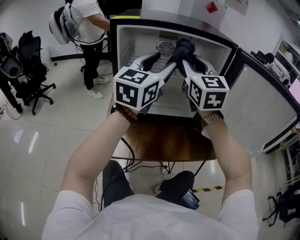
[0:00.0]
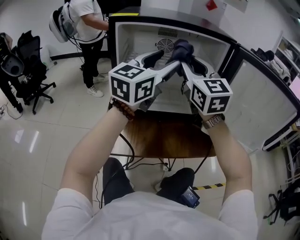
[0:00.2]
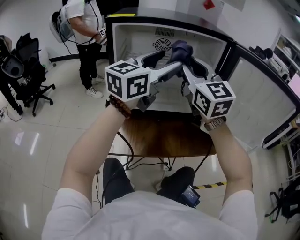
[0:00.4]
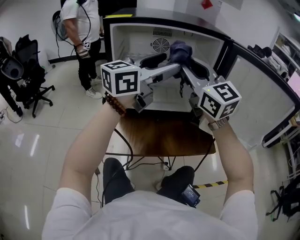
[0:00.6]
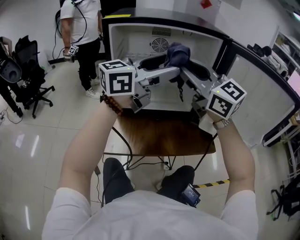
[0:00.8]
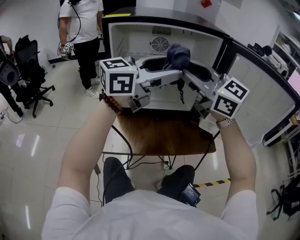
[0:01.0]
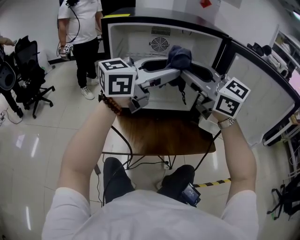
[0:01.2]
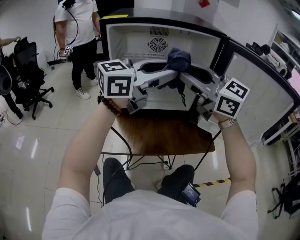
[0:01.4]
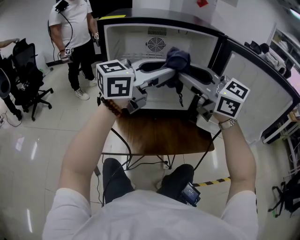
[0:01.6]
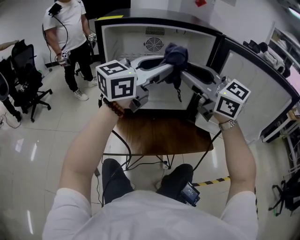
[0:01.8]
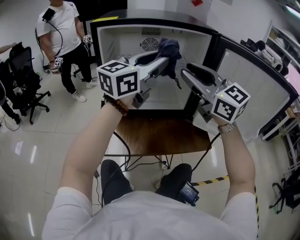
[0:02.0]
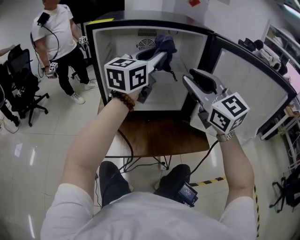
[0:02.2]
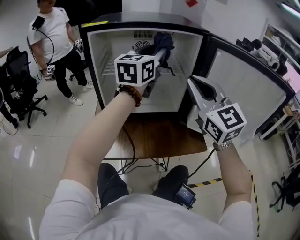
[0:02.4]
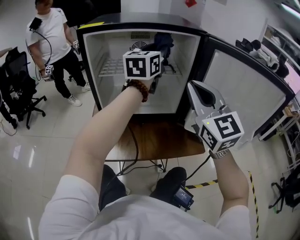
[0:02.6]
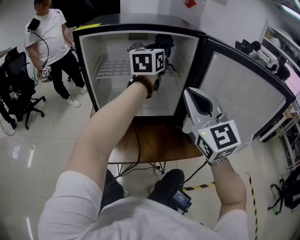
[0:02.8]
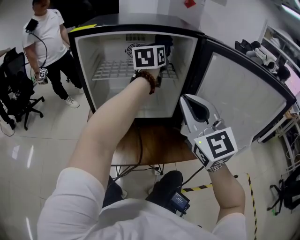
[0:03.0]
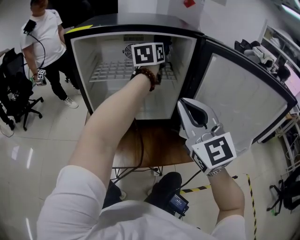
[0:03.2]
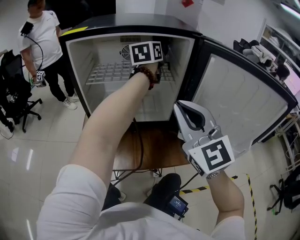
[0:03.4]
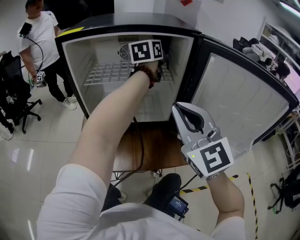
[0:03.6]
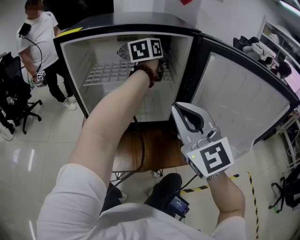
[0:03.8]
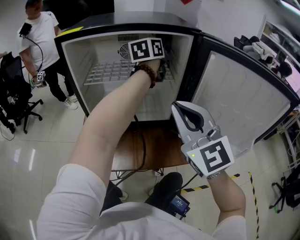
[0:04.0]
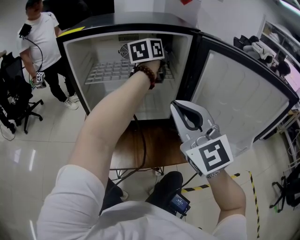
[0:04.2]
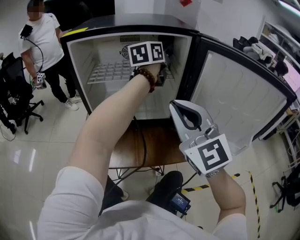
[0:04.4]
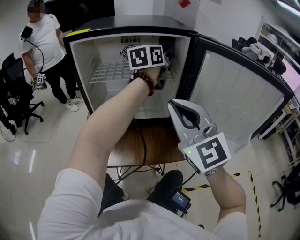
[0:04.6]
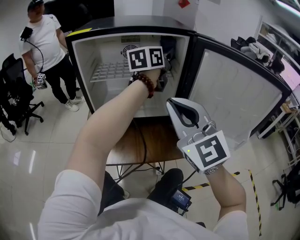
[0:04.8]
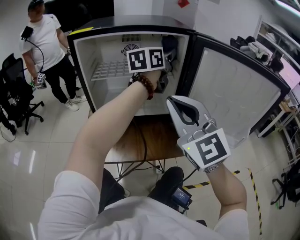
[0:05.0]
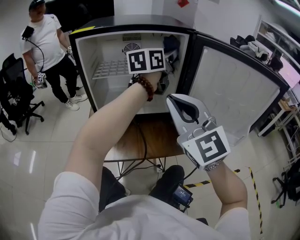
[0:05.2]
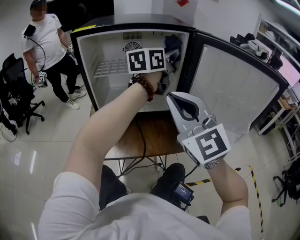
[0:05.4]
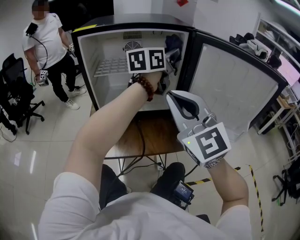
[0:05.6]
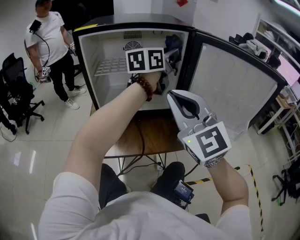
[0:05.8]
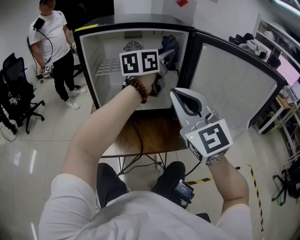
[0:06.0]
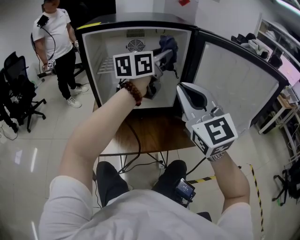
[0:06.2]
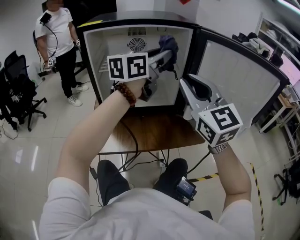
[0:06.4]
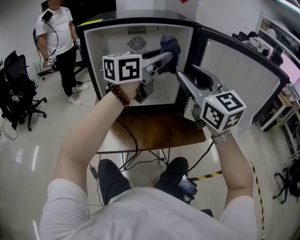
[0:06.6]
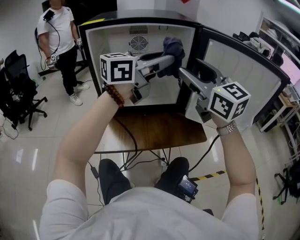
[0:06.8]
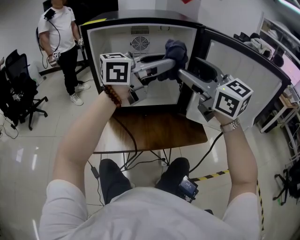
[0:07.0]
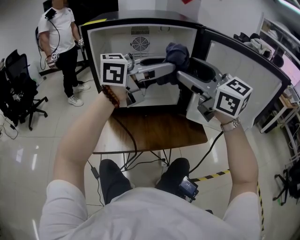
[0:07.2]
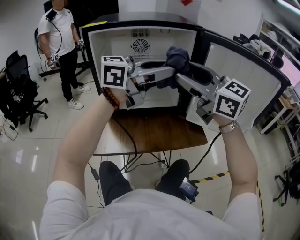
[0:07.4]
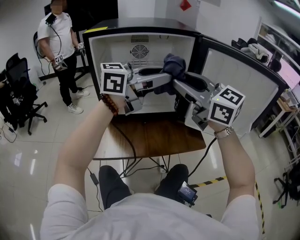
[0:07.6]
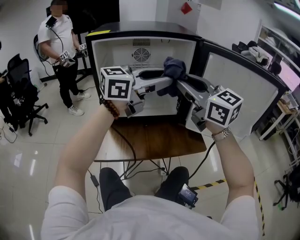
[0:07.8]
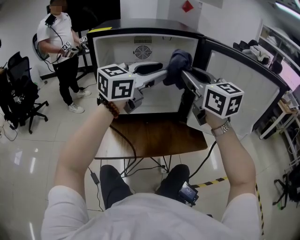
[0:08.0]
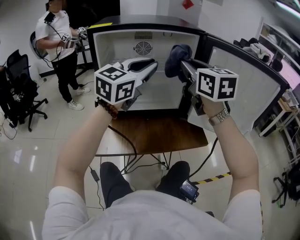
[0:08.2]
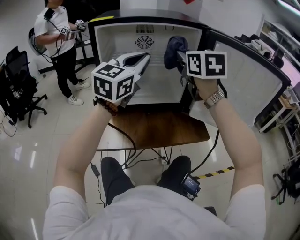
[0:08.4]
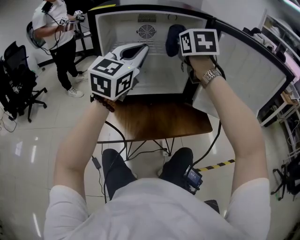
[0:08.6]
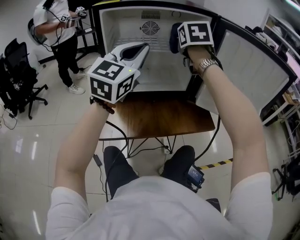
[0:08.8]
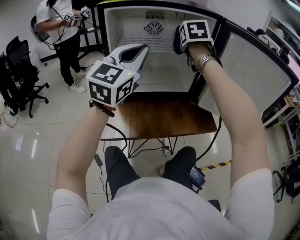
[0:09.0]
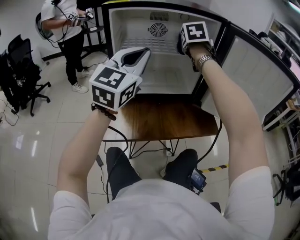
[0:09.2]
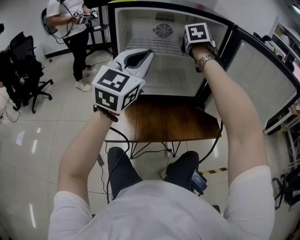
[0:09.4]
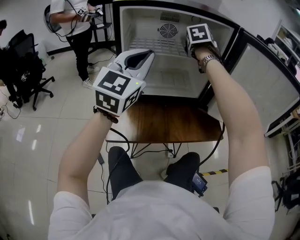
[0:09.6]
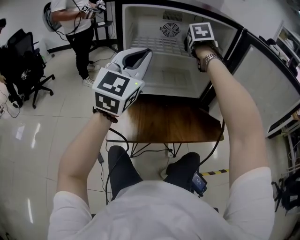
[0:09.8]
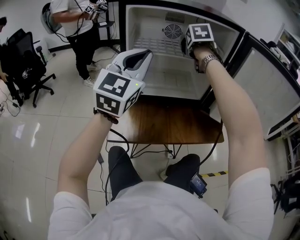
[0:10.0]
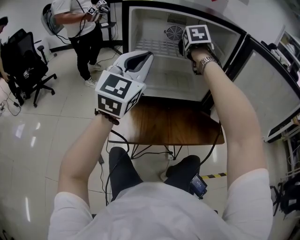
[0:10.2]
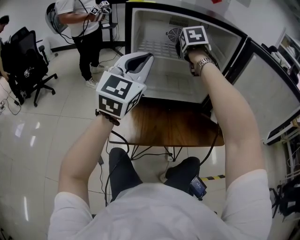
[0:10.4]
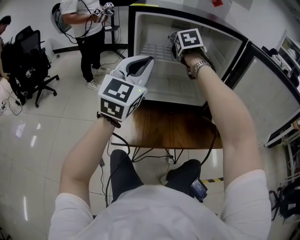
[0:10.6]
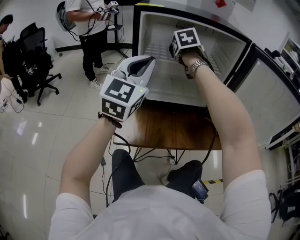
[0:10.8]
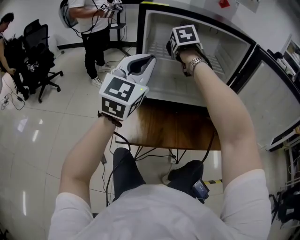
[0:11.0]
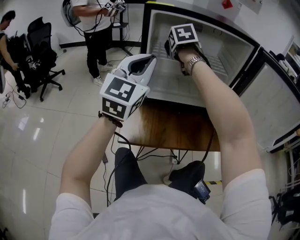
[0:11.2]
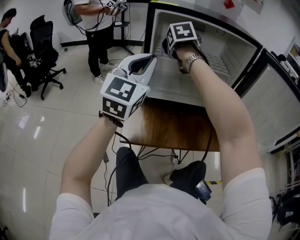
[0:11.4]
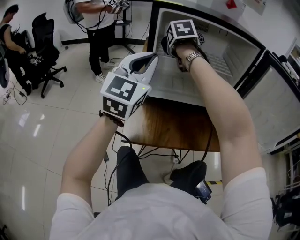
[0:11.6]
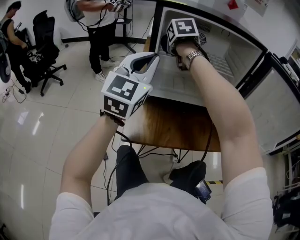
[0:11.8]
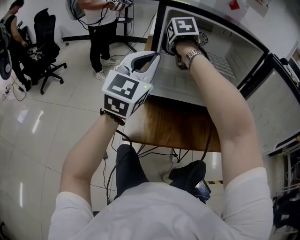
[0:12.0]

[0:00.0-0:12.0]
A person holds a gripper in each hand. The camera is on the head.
0:00.0 to 0:01.6: The left gripper changes place by about 10 cm, and swivels approximately 40 degrees, while the right gripper moves approximately 10 cm, and rotates about 40 degrees.
0:01.6 to 0:03.0: The left gripper goes some 20 cm forward, and changes its angle by some 40 degrees. The right gripper is displaced to the right by roughly 10 cm, rotates some 30 degrees, and closes.
0:04.4 to 0:06.0: The left gripper goes roughly 15 cm backward.
0:06.0 to 0:07.6: The right gripper ends up approximately 5 cm from where it was, turns by about 30 degrees, and opens up; the left gripper shifts by some 15 cm, and turns by roughly 40 degrees.
0:07.6 to 0:09.0: The right gripper changes place by some 20 cm, and rotates roughly 60 degrees. Meanwhile the left gripper shifts by roughly 15 cm, turns by approximately 60 degrees, and closes its fingers.
0:09.0 to 0:10.4: The right gripper travels to the left by roughly 10 cm. Meanwhile the left gripper heads to the left, covering roughly 5 cm.
0:10.4 to 0:12.0: The right gripper heads to the left, covering about 15 cm. The left gripper is displaced to the left by roughly 5 cm.

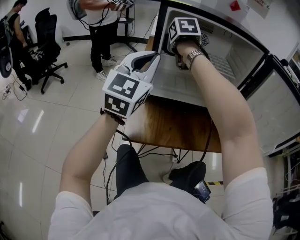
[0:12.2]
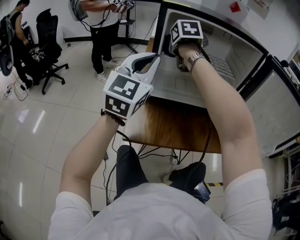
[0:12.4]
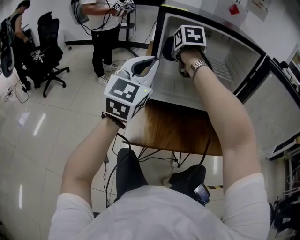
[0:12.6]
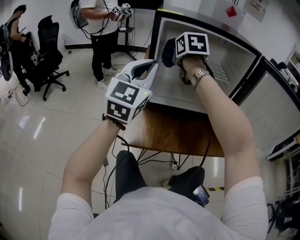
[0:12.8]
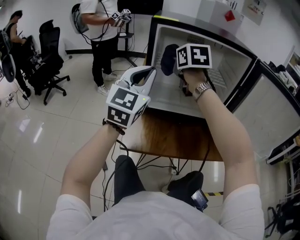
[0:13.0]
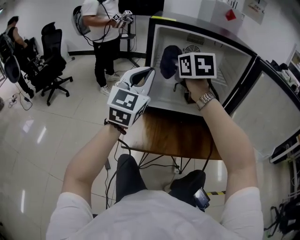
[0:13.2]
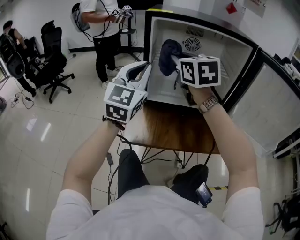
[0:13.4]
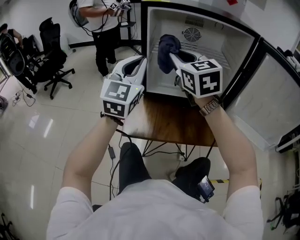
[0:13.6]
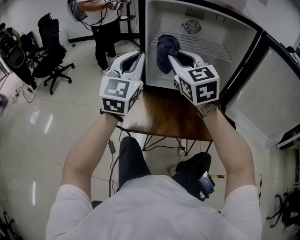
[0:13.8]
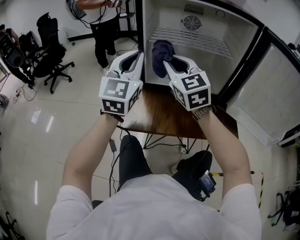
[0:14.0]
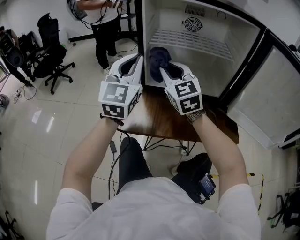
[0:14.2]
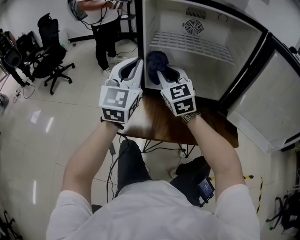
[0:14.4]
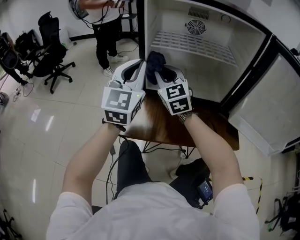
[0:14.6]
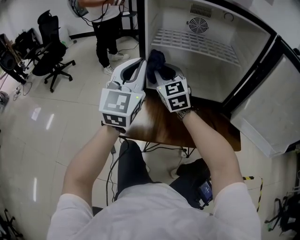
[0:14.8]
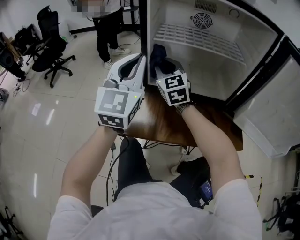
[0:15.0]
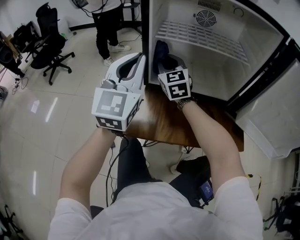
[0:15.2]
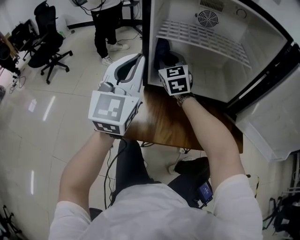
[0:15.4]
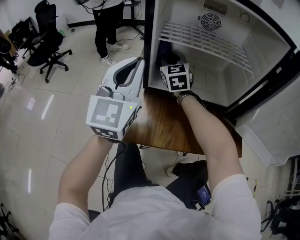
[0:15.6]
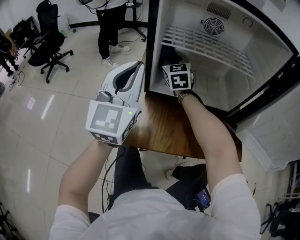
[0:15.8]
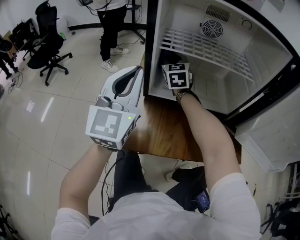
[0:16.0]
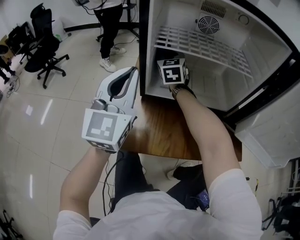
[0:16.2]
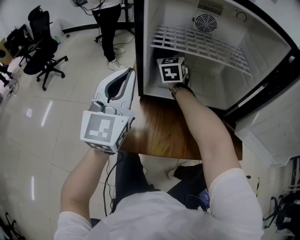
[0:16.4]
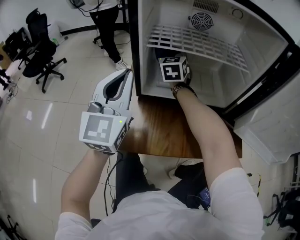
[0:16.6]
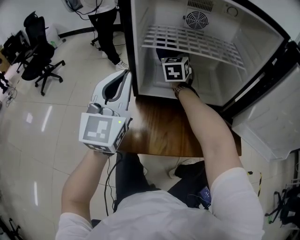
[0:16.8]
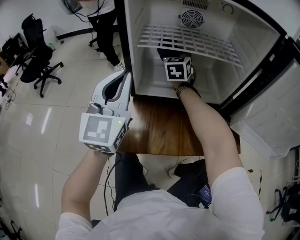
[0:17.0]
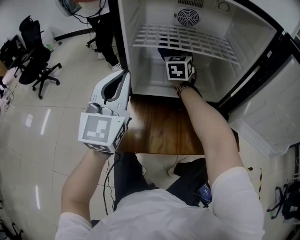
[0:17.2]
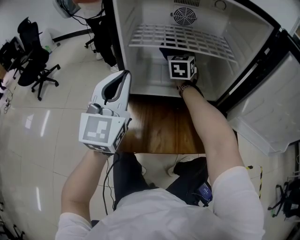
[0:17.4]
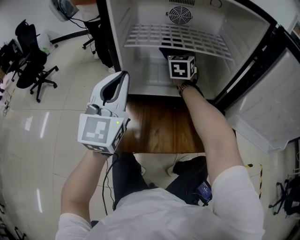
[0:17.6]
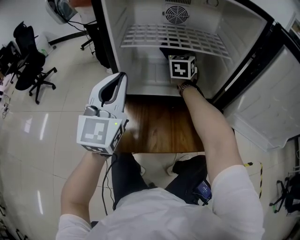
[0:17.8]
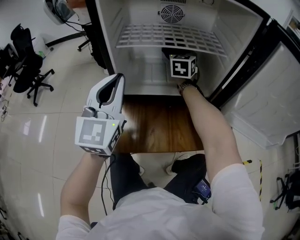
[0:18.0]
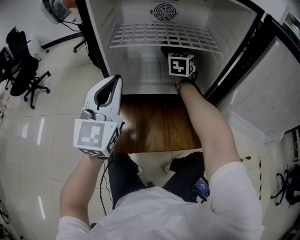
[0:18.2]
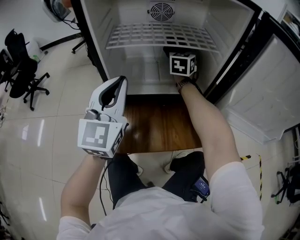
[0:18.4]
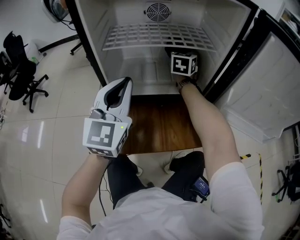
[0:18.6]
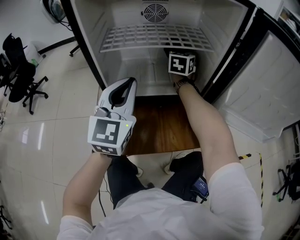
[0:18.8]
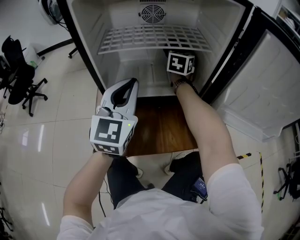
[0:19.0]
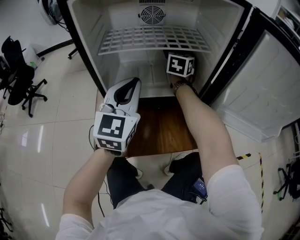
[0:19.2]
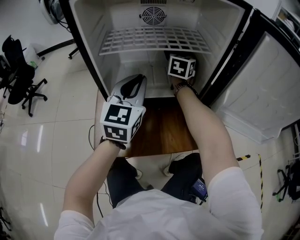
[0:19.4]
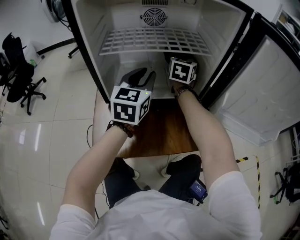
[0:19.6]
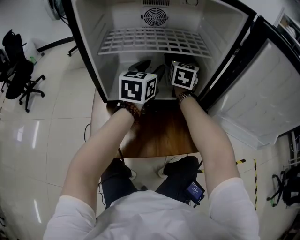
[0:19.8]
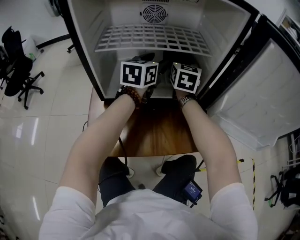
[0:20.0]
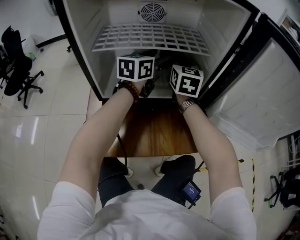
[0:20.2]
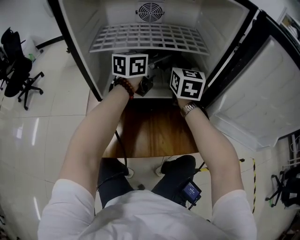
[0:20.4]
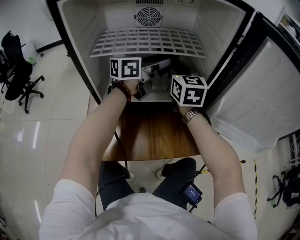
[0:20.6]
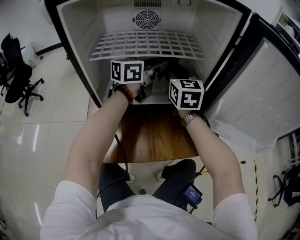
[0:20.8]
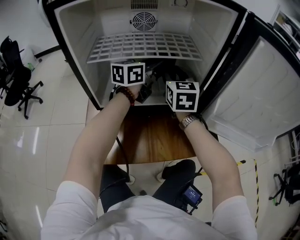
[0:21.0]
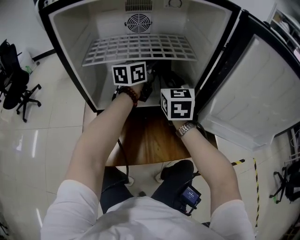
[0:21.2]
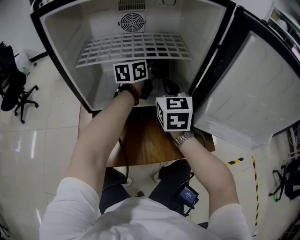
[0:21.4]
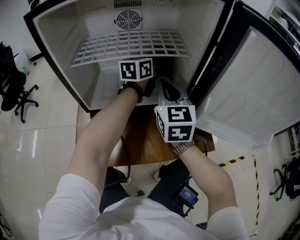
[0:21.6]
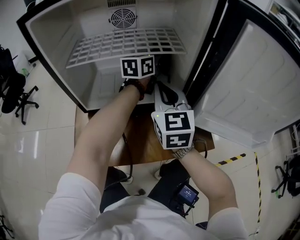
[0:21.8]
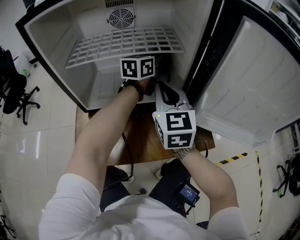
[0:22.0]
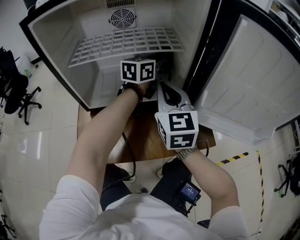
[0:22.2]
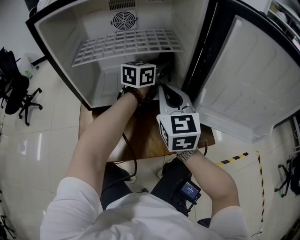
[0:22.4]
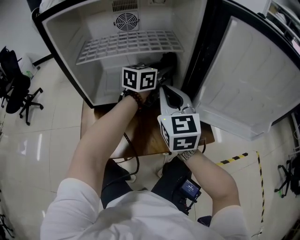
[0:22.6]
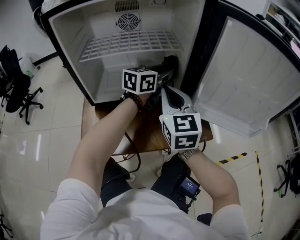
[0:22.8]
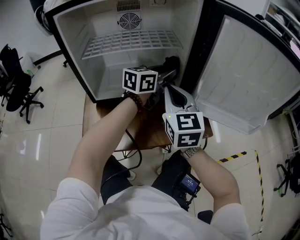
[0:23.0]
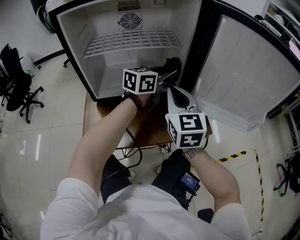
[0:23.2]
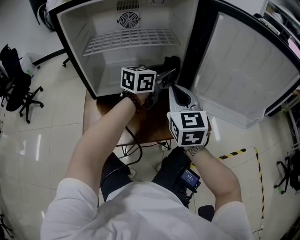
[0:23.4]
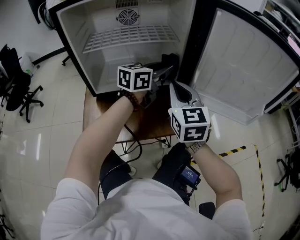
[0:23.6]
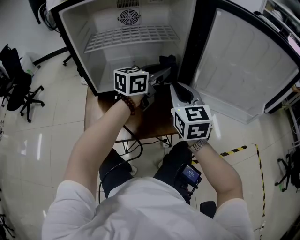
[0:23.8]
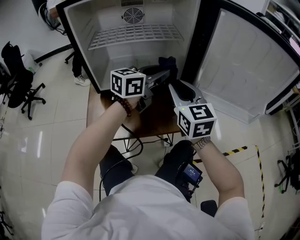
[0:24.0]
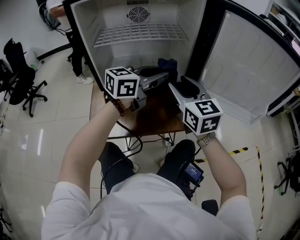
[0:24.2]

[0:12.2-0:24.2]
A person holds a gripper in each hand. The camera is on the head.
0:12.2 to 0:13.8: The right gripper shifts roughly 15 cm backward, and angles its fingers upward, by roughly 30 degrees.
0:13.8 to 0:15.2: The right gripper moves downward and forward, about 20 cm.
0:15.2 to 0:16.6: The right gripper shifts some 15 cm forward and to the right.
0:16.6 to 0:18.2: The right gripper is displaced to the right by roughly 20 cm. Meanwhile the left gripper shifts about 5 cm to the right.
0:18.2 to 0:19.8: The right gripper heads to the right, covering some 5 cm. Meanwhile the left gripper shifts some 20 cm forward and to the right, swivels approximately 30 degrees, and opens up.
0:19.8 to 0:21.2: The right gripper is displaced backward by some 10 cm. The left gripper travels forward by some 10 cm, rotates about 20 degrees, and closes.
0:21.2 to 0:22.6: The right gripper shifts approximately 10 cm backward, and closes; the left gripper is displaced to the right by approximately 10 cm.
0:22.6 to 0:24.2: The left gripper is displaced backward by roughly 15 cm; the right gripper changes place by roughly 5 cm, and opens its fingers.
